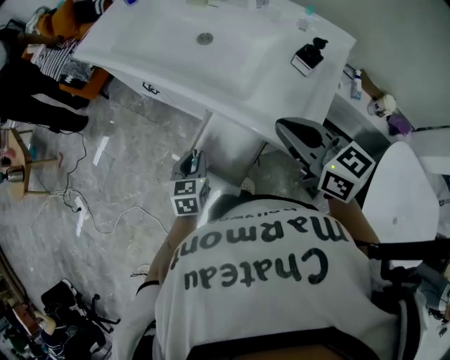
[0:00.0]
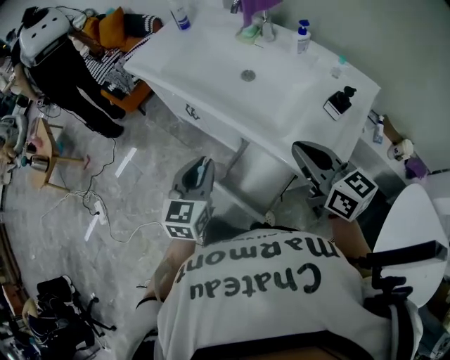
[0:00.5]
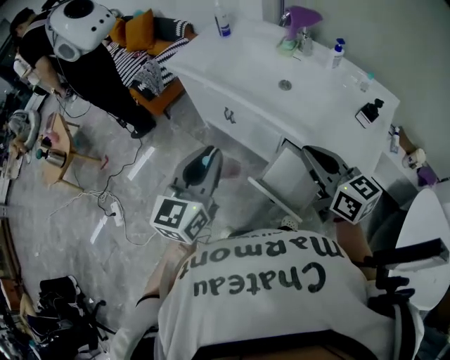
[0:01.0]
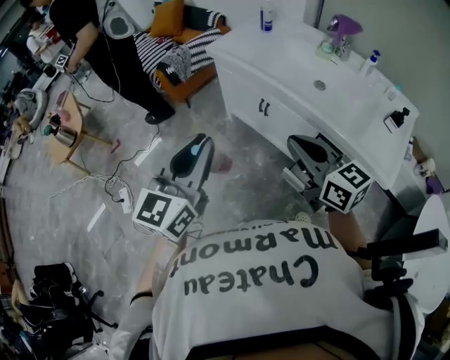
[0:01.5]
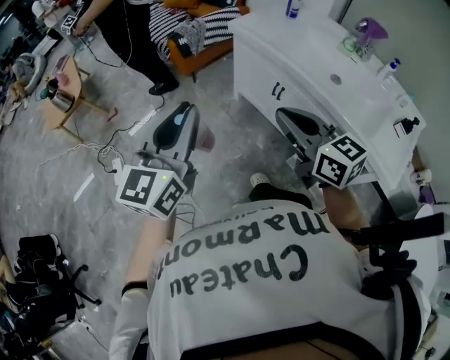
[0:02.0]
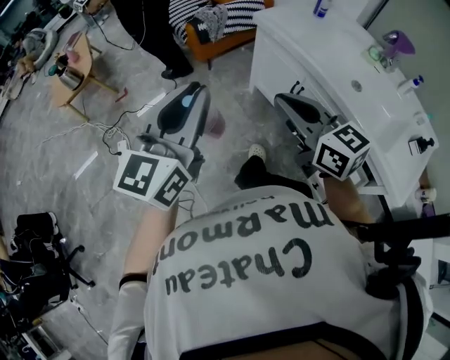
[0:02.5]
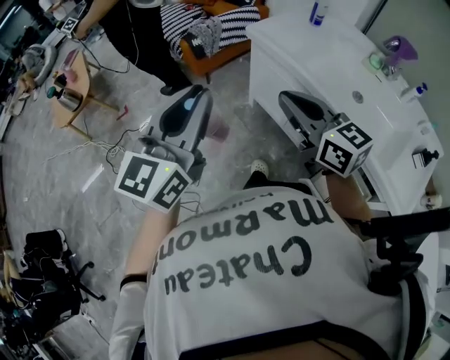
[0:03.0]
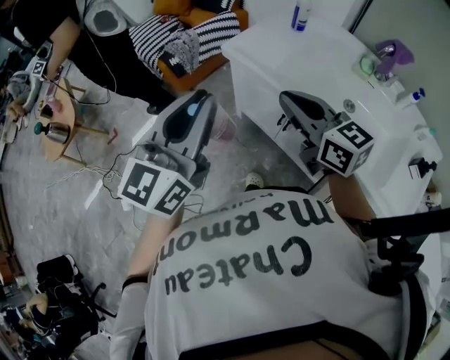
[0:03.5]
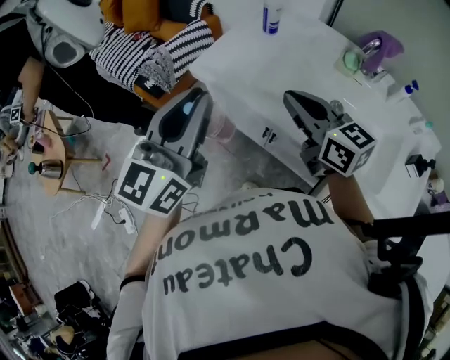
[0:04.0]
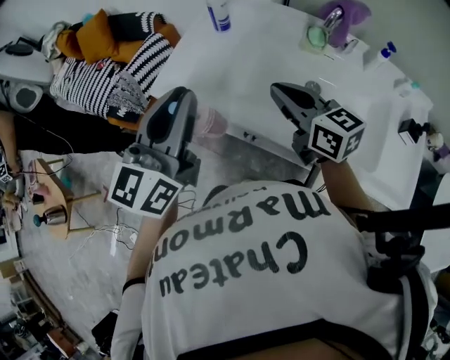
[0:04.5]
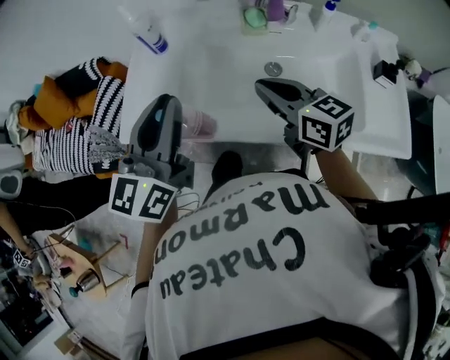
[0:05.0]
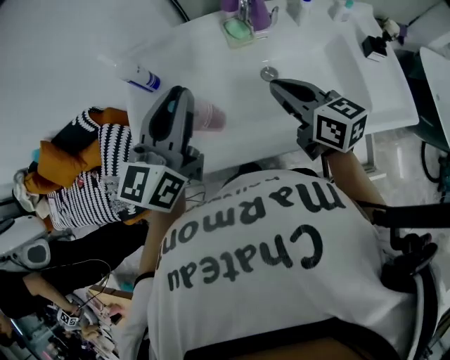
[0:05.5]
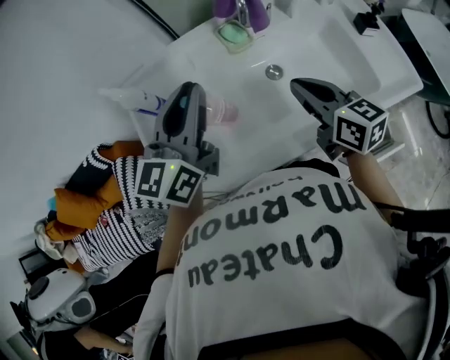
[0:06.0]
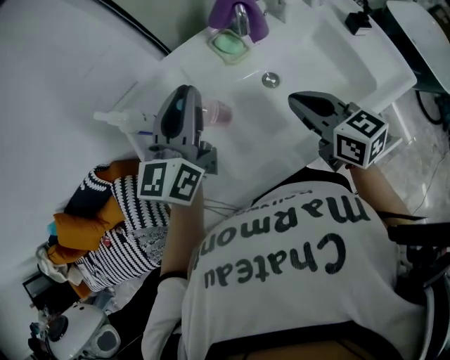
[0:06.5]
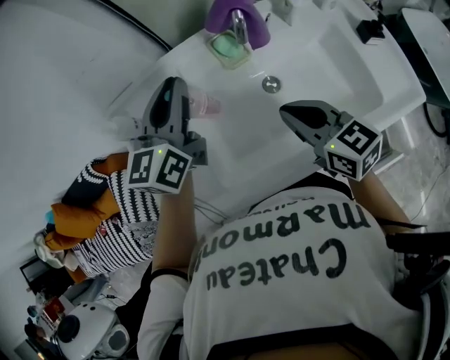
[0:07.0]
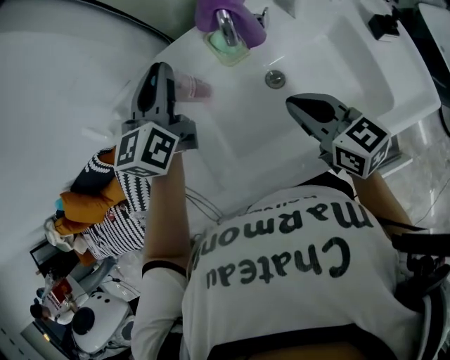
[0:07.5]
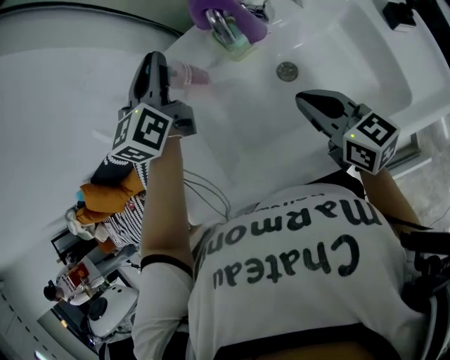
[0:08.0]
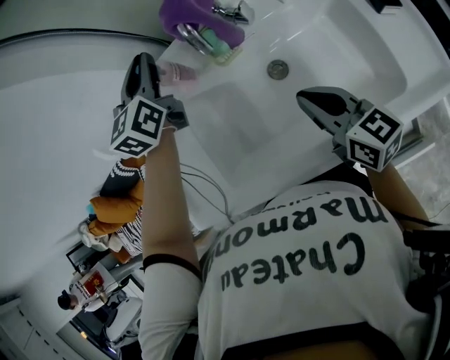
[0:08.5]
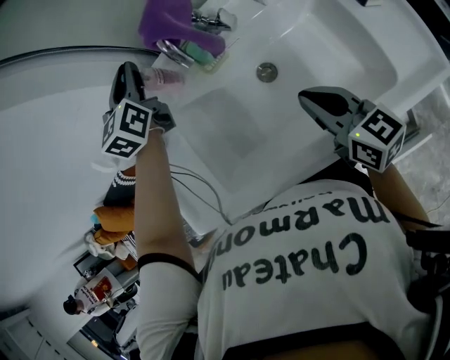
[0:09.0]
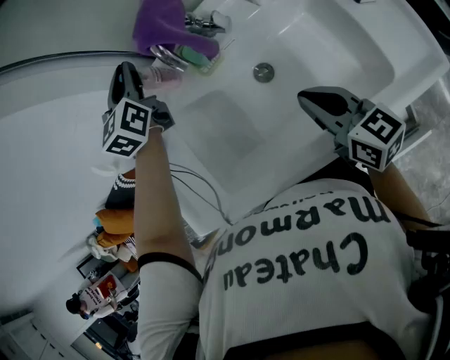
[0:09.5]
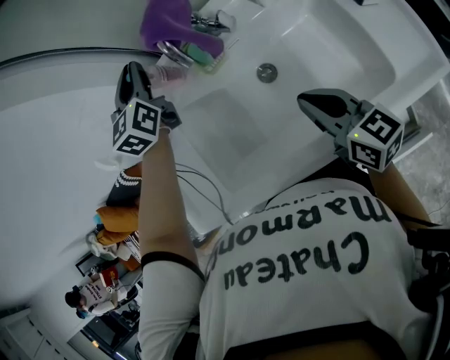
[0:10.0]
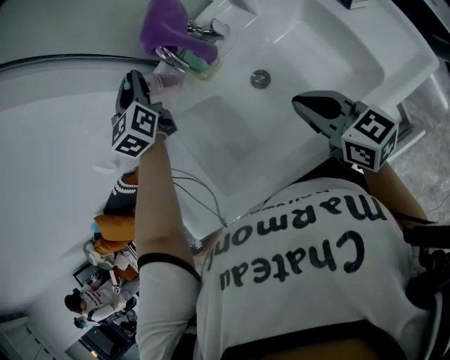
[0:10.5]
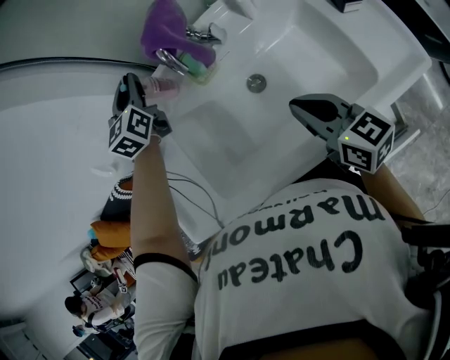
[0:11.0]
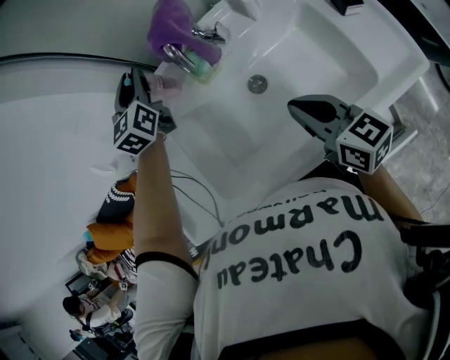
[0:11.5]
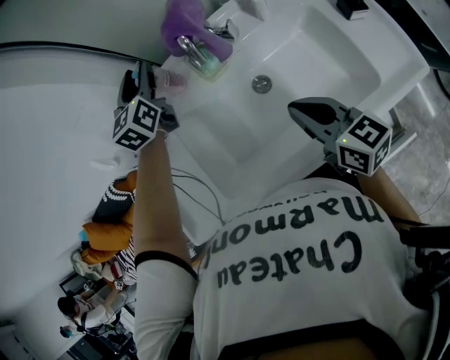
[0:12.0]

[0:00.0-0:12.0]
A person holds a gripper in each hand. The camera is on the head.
0:00.0 to 0:02.0: Both grippers are carried to the left, roughly 40 cm. The left gripper goes some 35 cm upward, and tips its fingers upward by roughly 40 degrees.
0:02.0 to 0:04.0: The grippers both shift forward and to the right by approximately 35 cm.
0:04.0 to 0:06.0: The right gripper ends up some 20 cm from where it was, and changes its angle by approximately 60 degrees, while the left gripper shifts by some 35 cm, and rotates some 50 degrees.
0:06.0 to 0:08.0: The left gripper travels forward by roughly 20 cm. The right gripper moves downward, roughly 5 cm, and reaches some 5 cm to the left, then returns.
0:08.0 to 0:10.0: The right gripper changes place by approximately 5 cm; the left gripper ends up approximately 5 cm from where it was.
0:10.0 to 0:12.0: The left gripper opens its fingers.

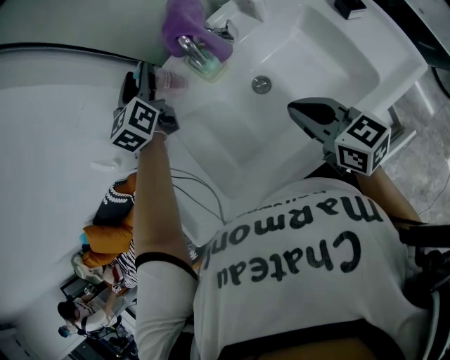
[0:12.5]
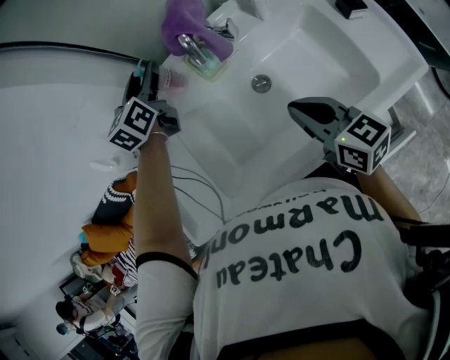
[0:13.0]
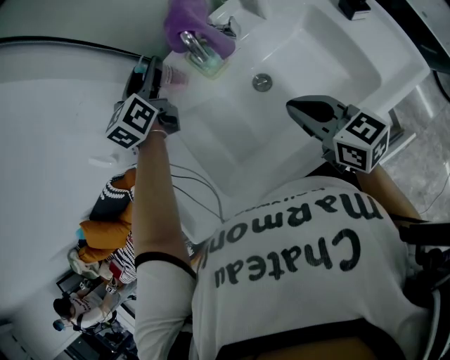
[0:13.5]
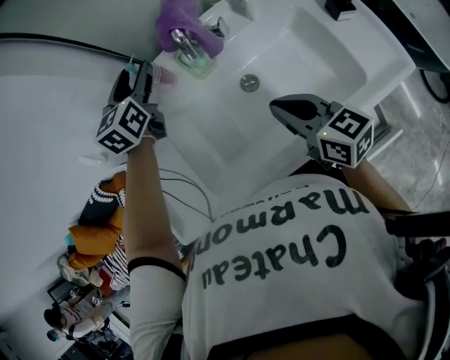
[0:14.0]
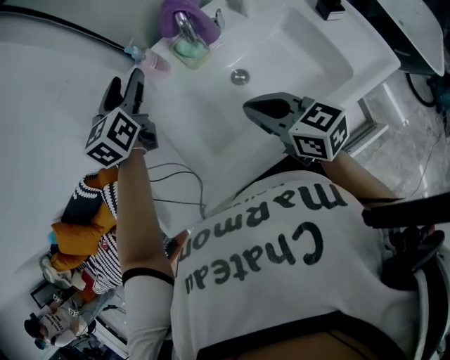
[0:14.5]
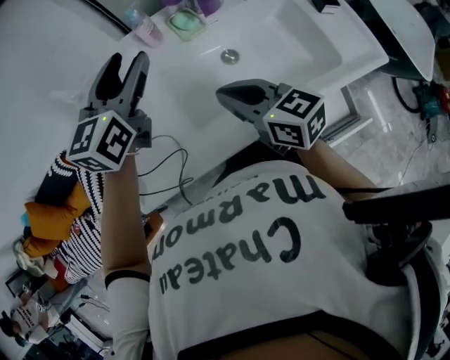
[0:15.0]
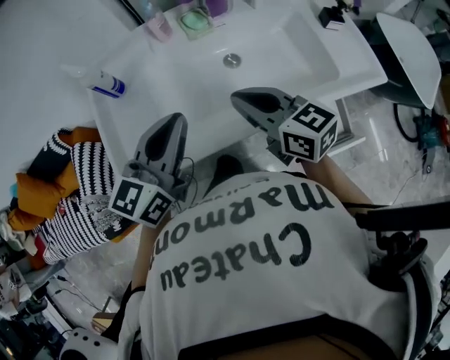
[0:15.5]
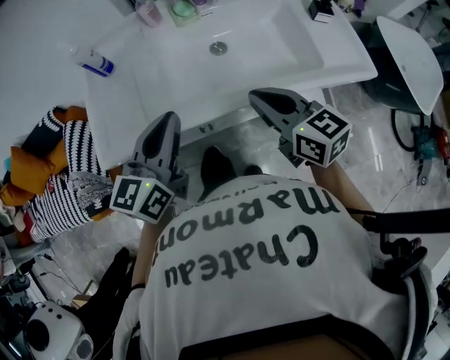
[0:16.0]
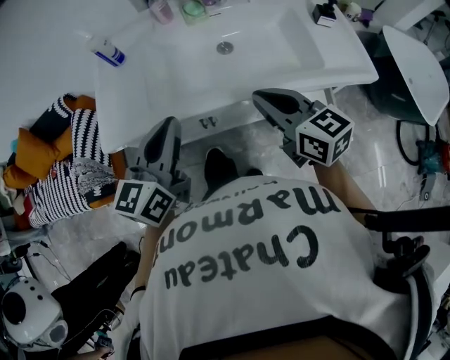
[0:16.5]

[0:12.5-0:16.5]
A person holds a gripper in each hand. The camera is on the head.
0:12.5 to 0:14.5: The left gripper shifts roughly 10 cm backward, while the right gripper goes some 5 cm to the left.
0:14.5 to 0:16.5: The left gripper shifts approximately 40 cm backward, and closes its fingers, while the right gripper is displaced backward by approximately 20 cm.

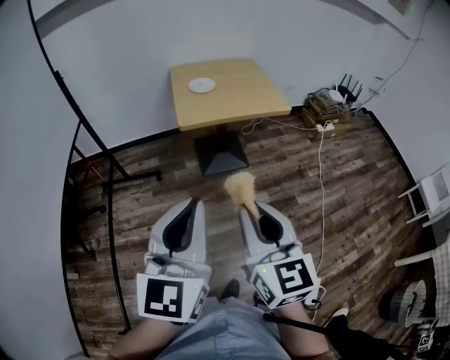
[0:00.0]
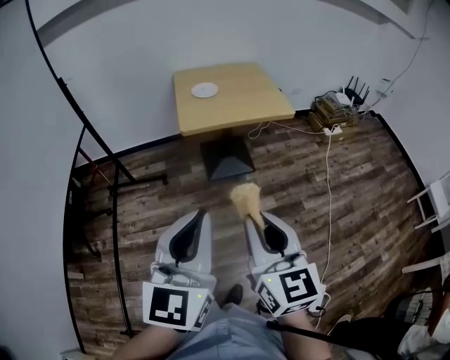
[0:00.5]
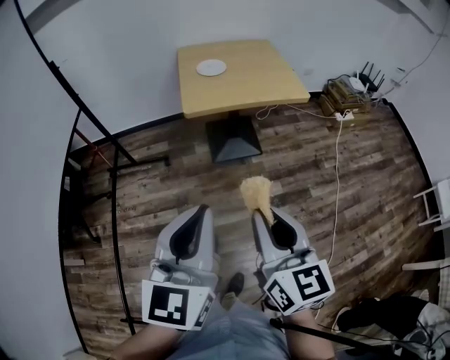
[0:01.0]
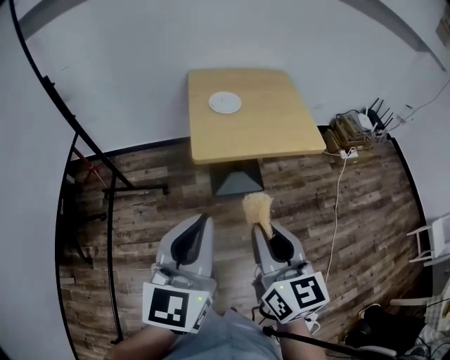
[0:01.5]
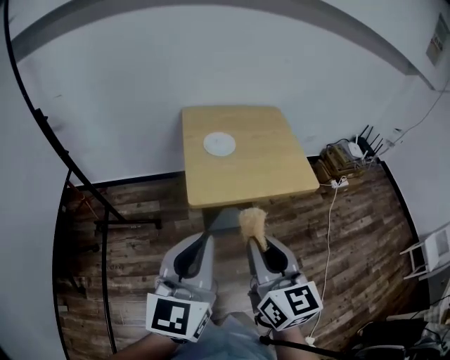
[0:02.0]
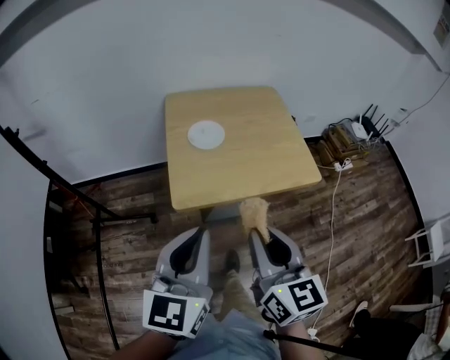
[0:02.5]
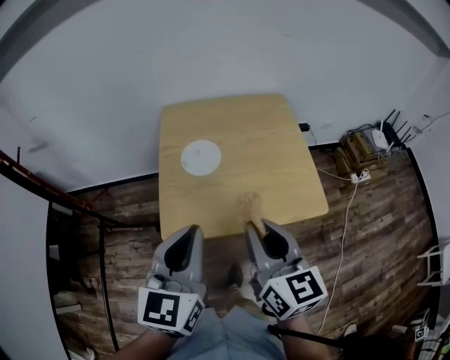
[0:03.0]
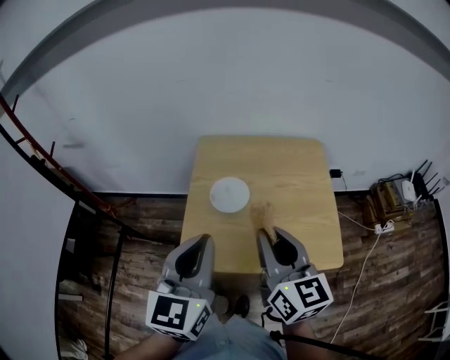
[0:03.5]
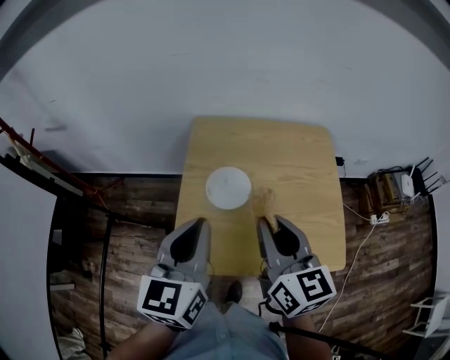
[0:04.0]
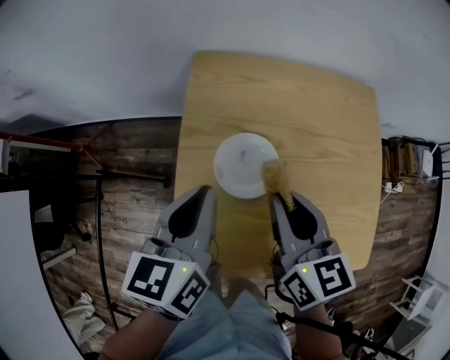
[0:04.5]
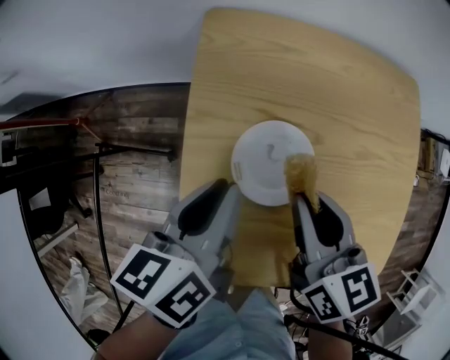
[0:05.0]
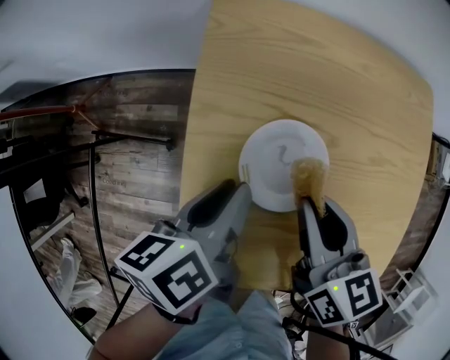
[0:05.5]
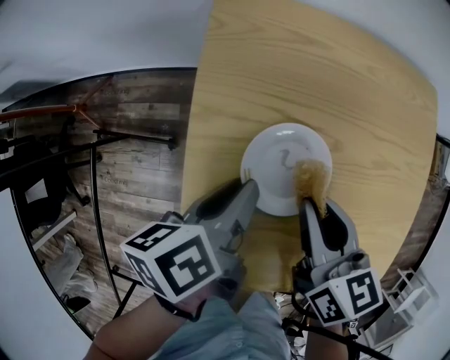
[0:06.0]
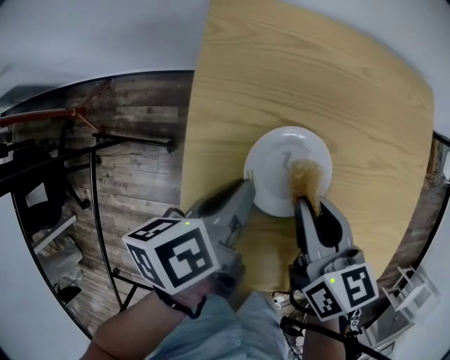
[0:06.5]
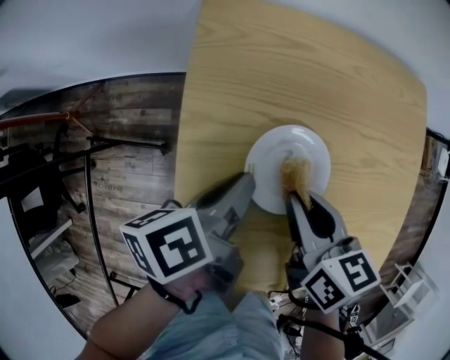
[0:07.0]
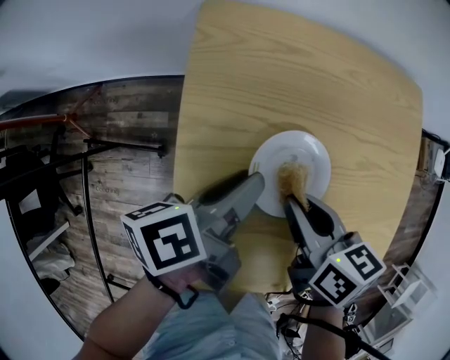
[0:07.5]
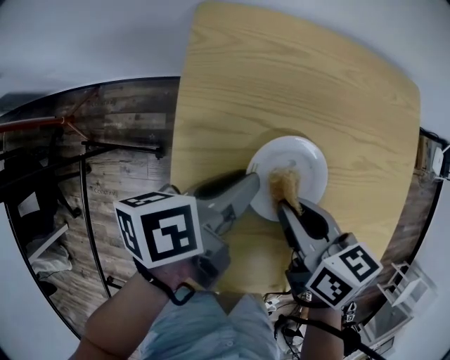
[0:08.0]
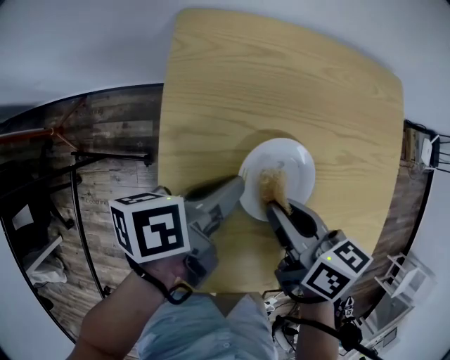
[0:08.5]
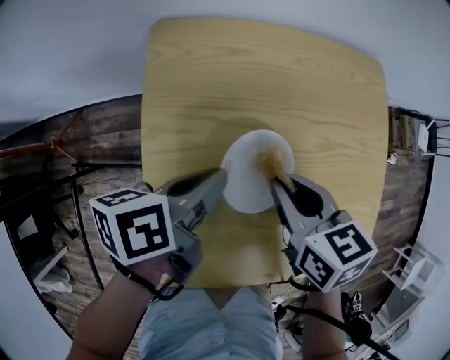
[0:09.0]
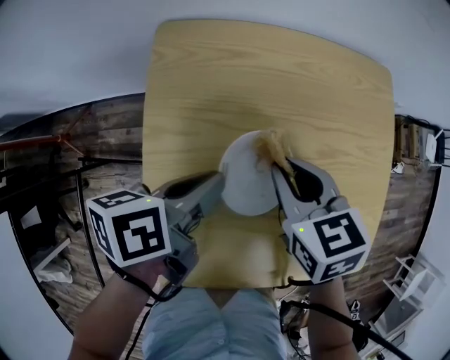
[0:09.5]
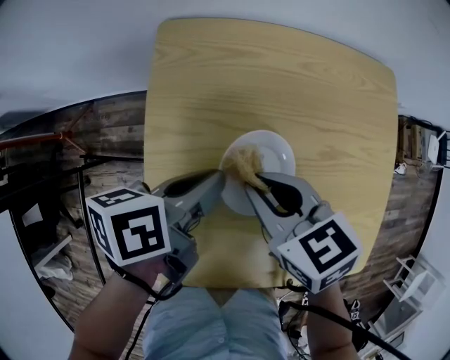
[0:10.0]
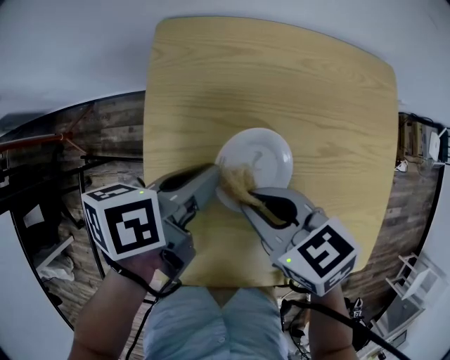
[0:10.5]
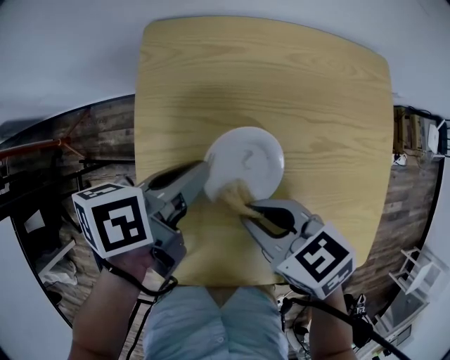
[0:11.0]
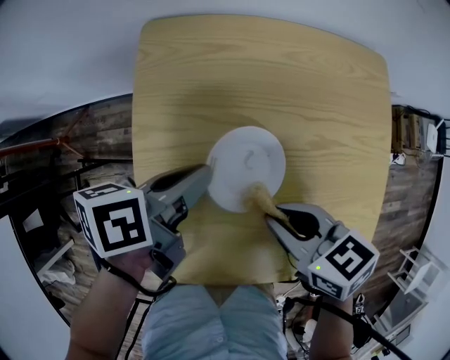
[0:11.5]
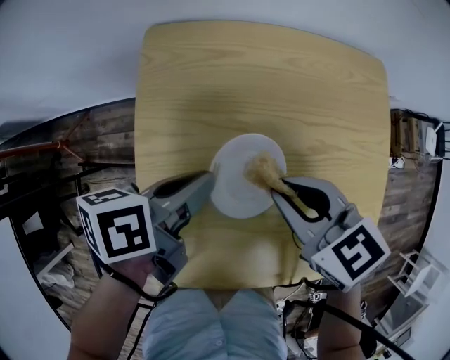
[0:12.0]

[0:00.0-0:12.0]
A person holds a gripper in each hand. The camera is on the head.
0:00.0 to 0:02.0: The grippers both shift forward by approximately 30 cm.
0:02.0 to 0:04.0: The two grippers go about 35 cm forward. The left gripper swivels approximately 20 degrees.
0:04.0 to 0:06.0: Both grippers travel together downward and forward, about 25 cm. The right gripper swivels roughly 30 degrees, while the left gripper twists approximately 50 degrees counterclockwise, seen from behind, and opens up.
0:06.0 to 0:08.0: There are only small adjustments of the grippers.
0:08.0 to 0:10.0: The right gripper changes its angle by approximately 30 degrees.
0:10.0 to 0:12.0: The right gripper shifts approximately 5 cm to the right.
